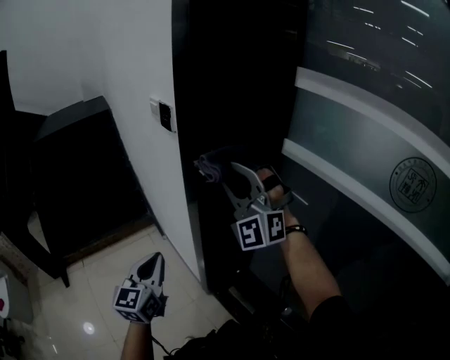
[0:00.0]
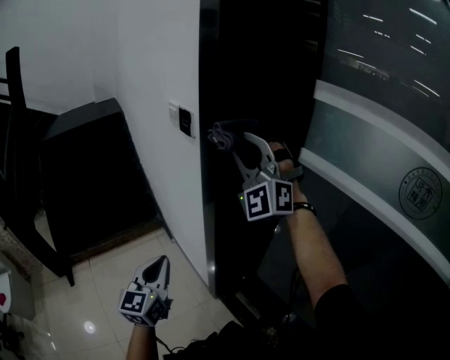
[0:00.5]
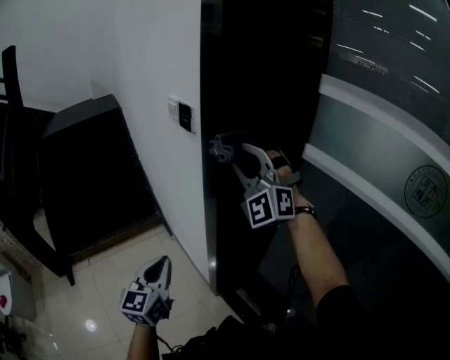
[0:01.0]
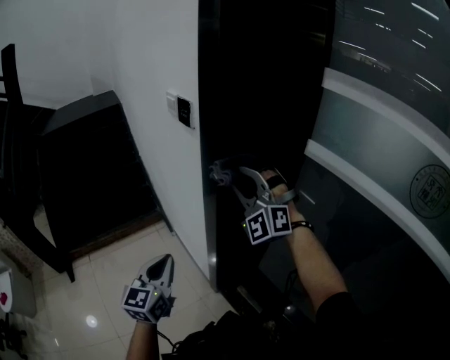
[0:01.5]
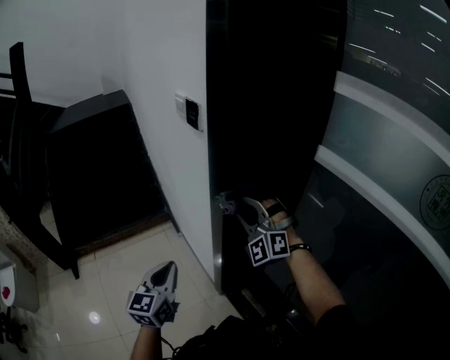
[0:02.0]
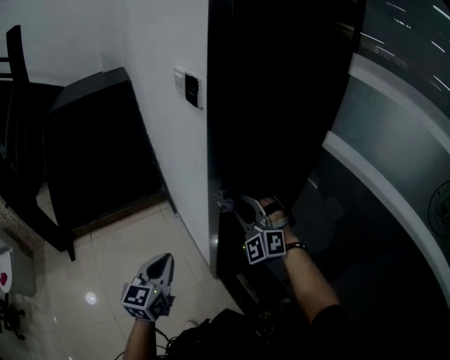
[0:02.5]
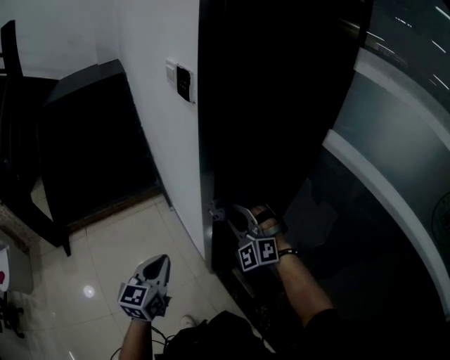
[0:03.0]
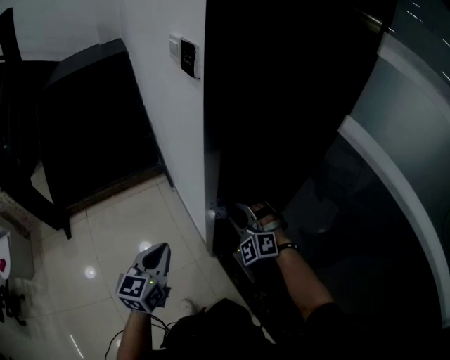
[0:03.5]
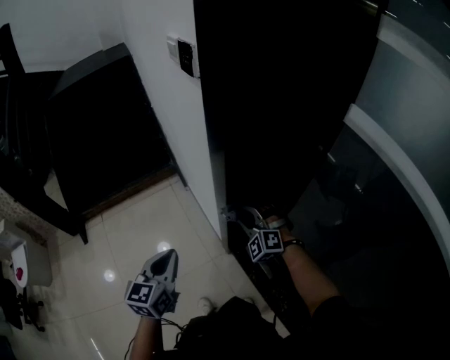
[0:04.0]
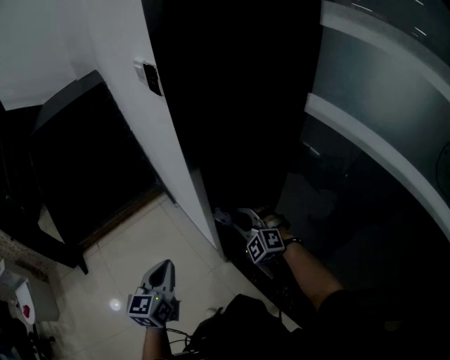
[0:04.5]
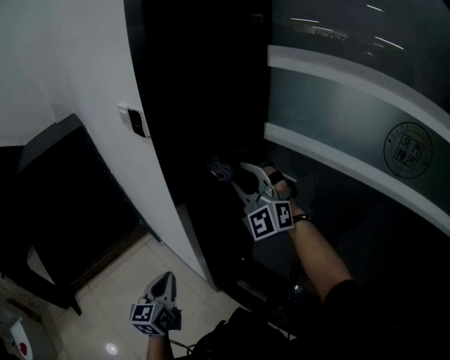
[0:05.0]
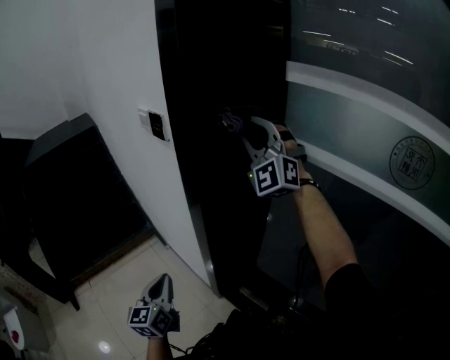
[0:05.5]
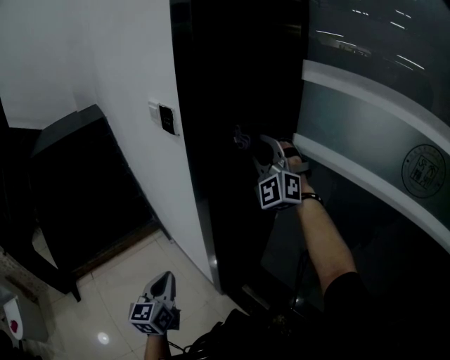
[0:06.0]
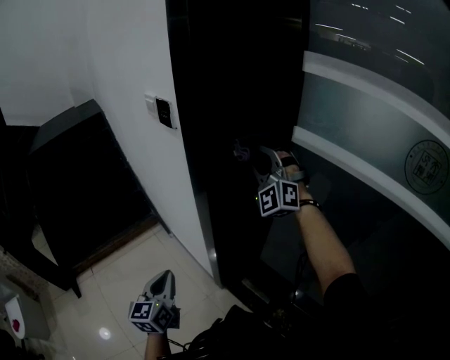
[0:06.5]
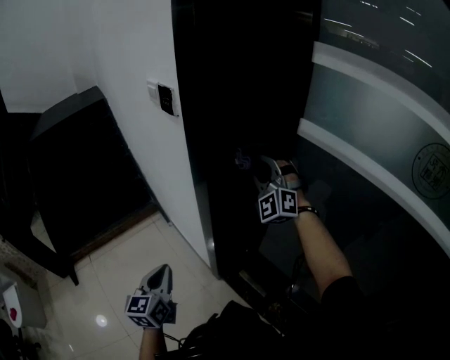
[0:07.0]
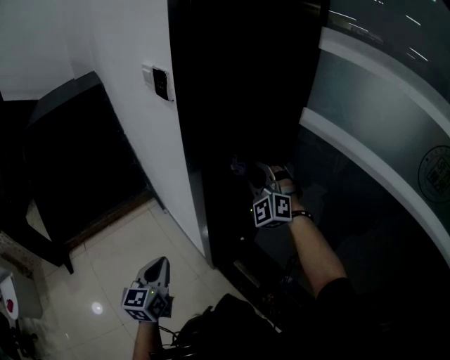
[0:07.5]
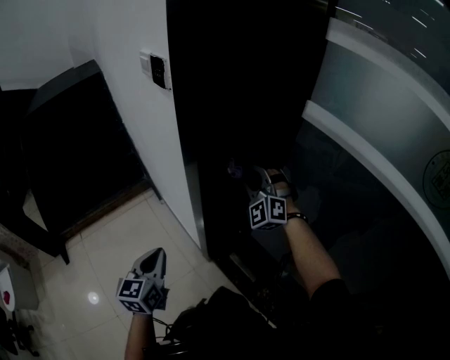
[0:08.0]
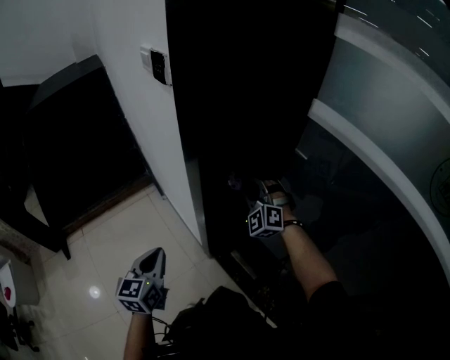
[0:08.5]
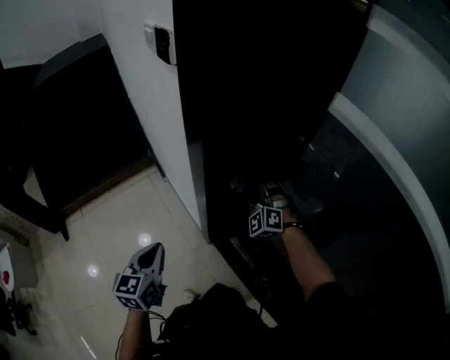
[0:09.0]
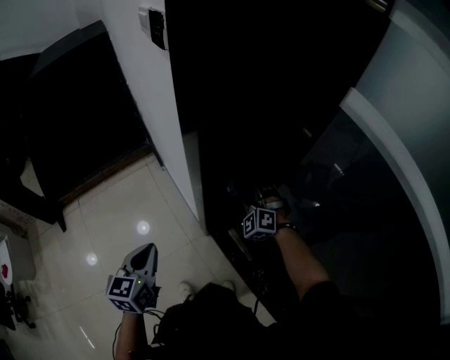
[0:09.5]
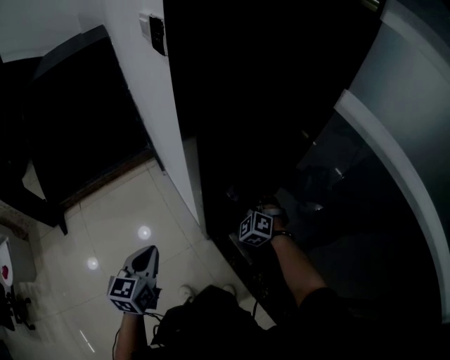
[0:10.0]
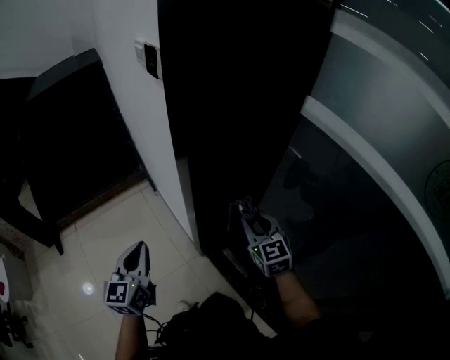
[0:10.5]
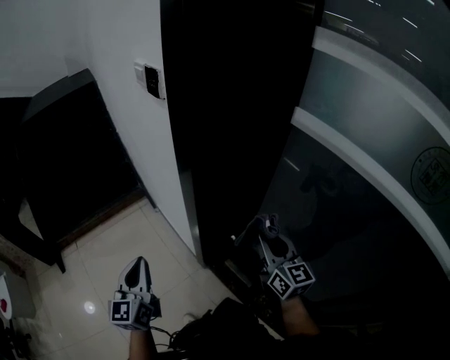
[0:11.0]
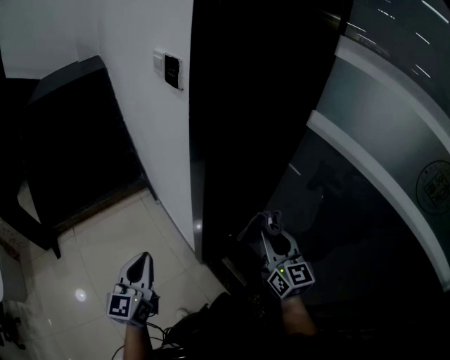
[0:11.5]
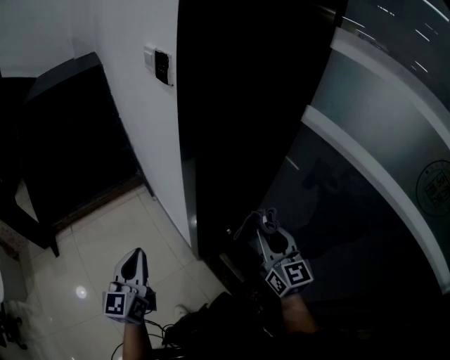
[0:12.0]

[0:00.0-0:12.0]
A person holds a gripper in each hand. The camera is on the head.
0:00.0 to 0:02.0: The right gripper shifts about 15 cm downward; the left gripper moves about 5 cm.
0:02.0 to 0:04.0: The right gripper travels downward by some 25 cm, and turns by some 30 degrees. Meanwhile the left gripper travels downward by approximately 5 cm.
0:04.0 to 0:06.0: The right gripper is displaced upward by some 40 cm, and angles its fingers upward, by some 40 degrees.
0:06.0 to 0:08.0: The right gripper shifts some 25 cm downward, and changes its angle by approximately 20 degrees.
0:08.0 to 0:10.0: The right gripper travels downward by about 20 cm, and swivels about 30 degrees.
0:10.0 to 0:12.0: The left gripper moves upward, approximately 10 cm, and changes its angle by about 20 degrees. Meanwhile the right gripper travels upward and backward by approximately 25 cm, and twists roughly 60 degrees clockwise, seen from behind.

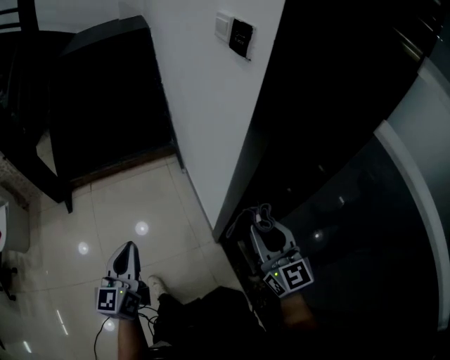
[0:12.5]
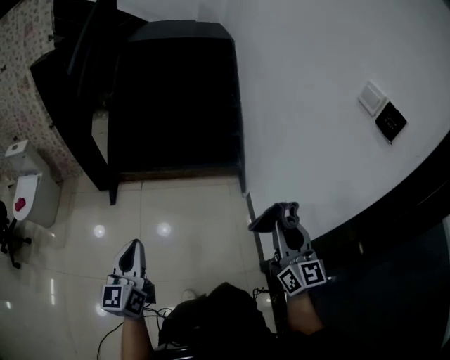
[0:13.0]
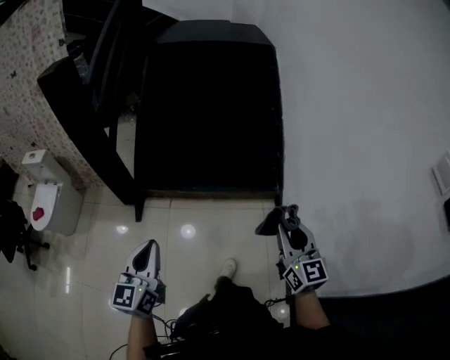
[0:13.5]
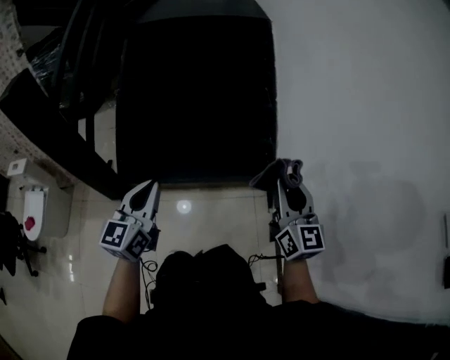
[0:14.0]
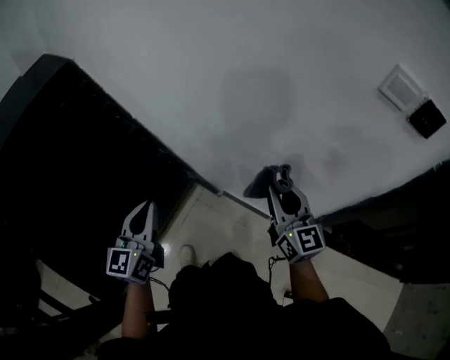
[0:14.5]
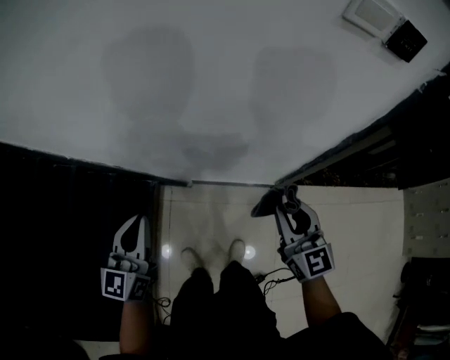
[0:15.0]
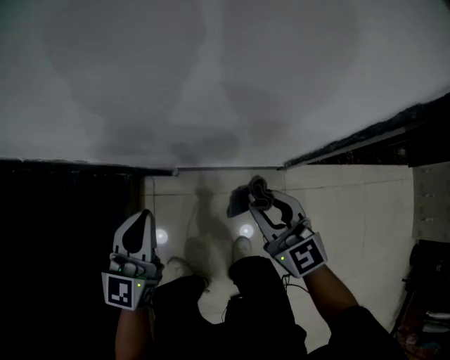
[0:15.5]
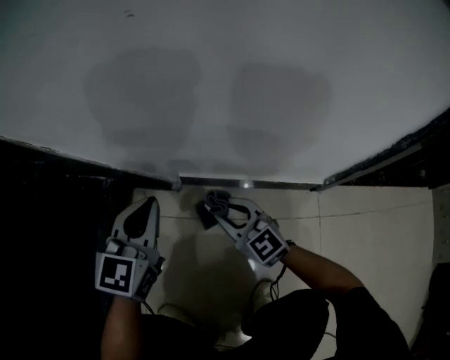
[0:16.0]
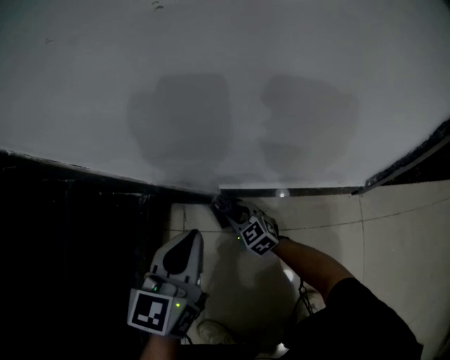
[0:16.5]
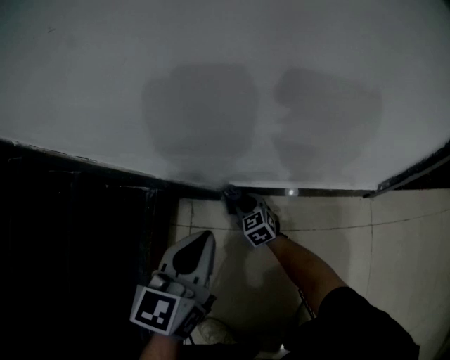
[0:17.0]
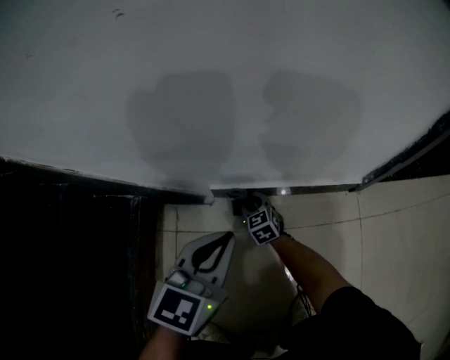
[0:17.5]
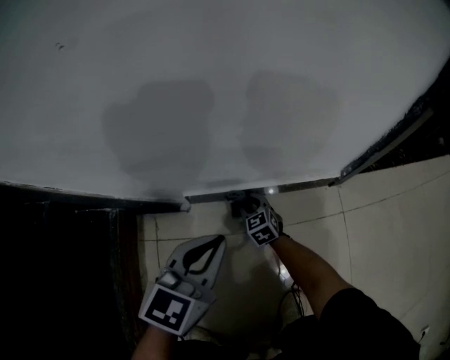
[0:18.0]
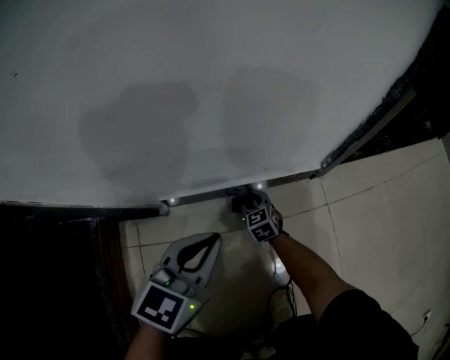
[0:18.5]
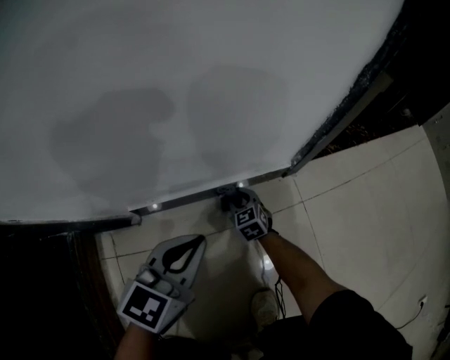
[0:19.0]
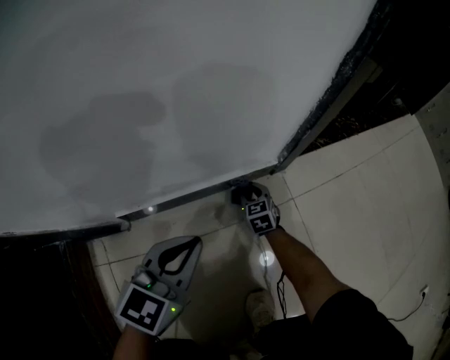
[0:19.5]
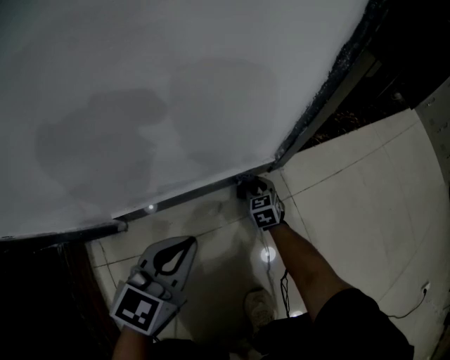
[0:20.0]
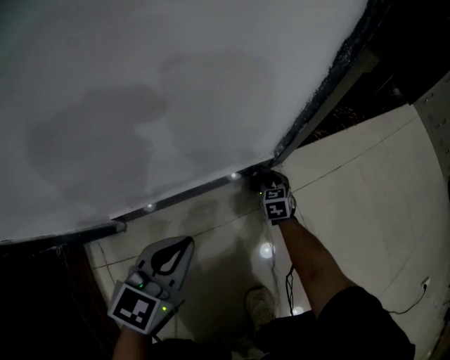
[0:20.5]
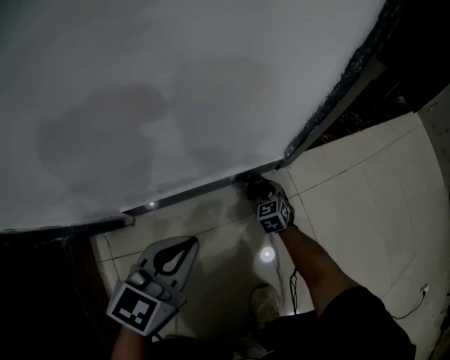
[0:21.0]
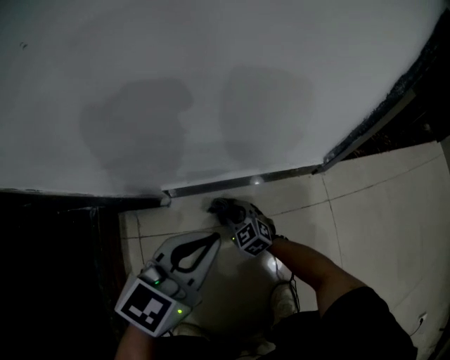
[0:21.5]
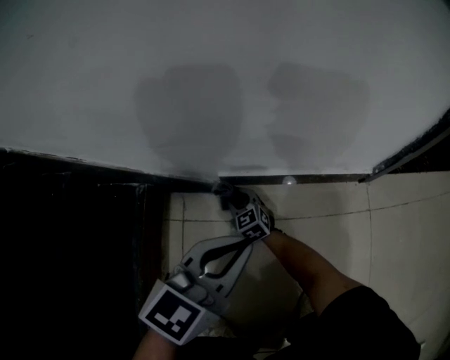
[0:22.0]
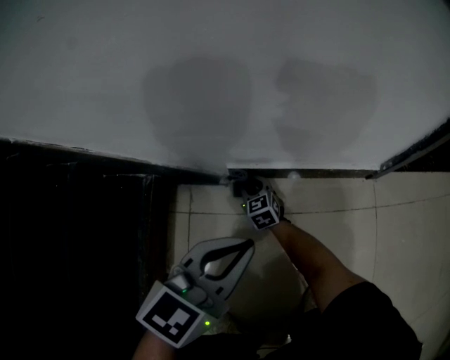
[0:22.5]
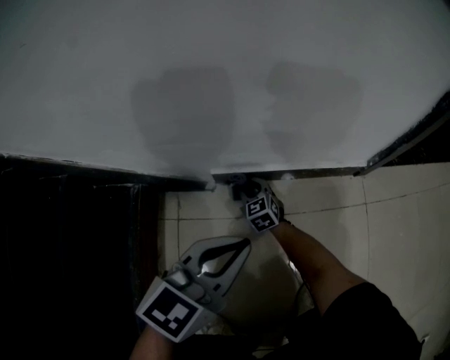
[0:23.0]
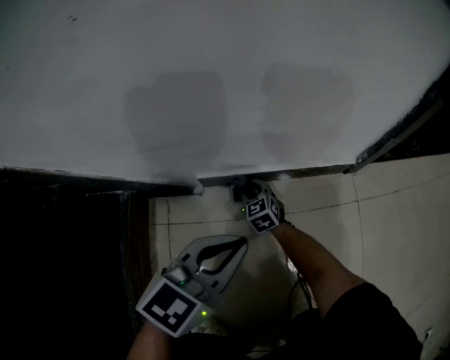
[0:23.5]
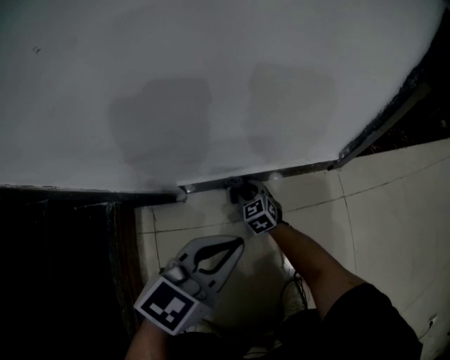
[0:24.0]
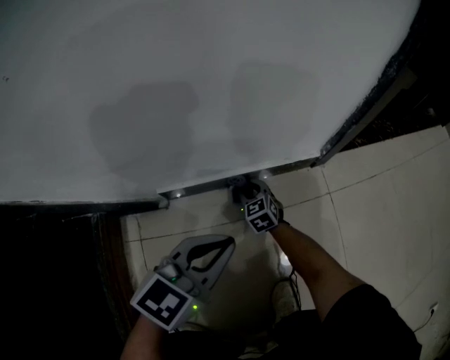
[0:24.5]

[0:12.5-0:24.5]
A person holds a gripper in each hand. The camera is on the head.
0:12.5 to 0:14.5: Both grippers are carried about 70 cm. The right gripper swivels approximately 40 degrees. Meanwhile the left gripper rotates about 40 degrees.
0:14.5 to 0:16.5: The two grippers go roughly 70 cm downward. The left gripper swivels about 40 degrees. The right gripper rotates about 30 degrees.
0:16.5 to 0:18.5: The right gripper ends up roughly 25 cm from where it was, and swivels about 30 degrees. Meanwhile the left gripper moves approximately 20 cm, and turns by approximately 30 degrees.
0:18.5 to 0:20.5: The left gripper shifts approximately 5 cm to the right. Meanwhile the right gripper moves to the right and forward, approximately 25 cm, and swivels approximately 30 degrees.
0:20.5 to 0:22.5: The right gripper shifts by approximately 50 cm, and swivels some 40 degrees. Meanwhile the left gripper changes place by about 20 cm.
0:22.5 to 0:24.5: The left gripper heads to the right, covering approximately 15 cm, while the right gripper shifts about 25 cm to the right.

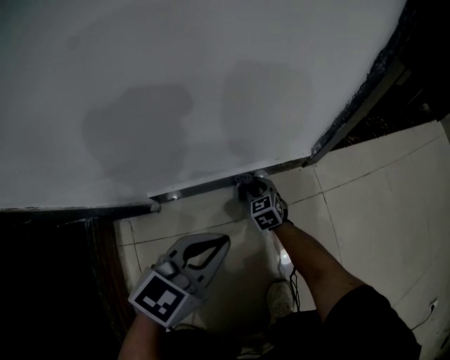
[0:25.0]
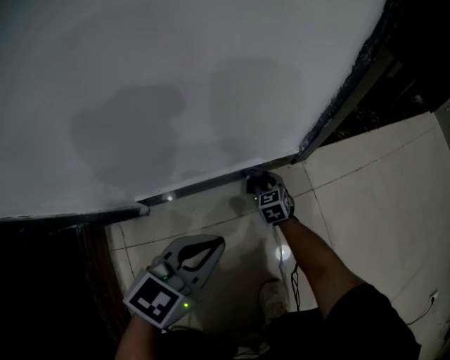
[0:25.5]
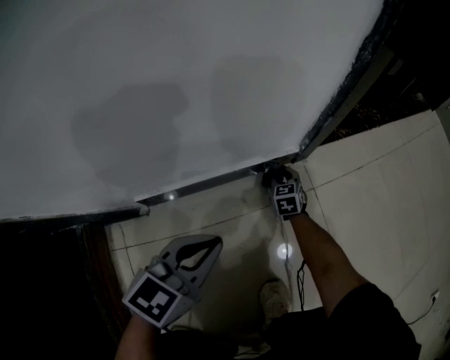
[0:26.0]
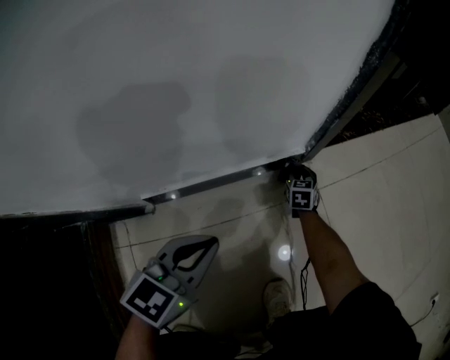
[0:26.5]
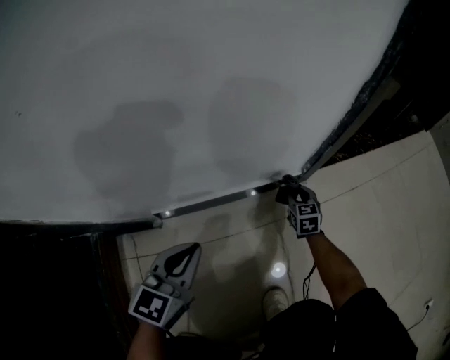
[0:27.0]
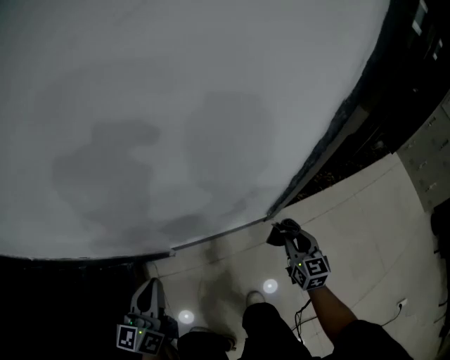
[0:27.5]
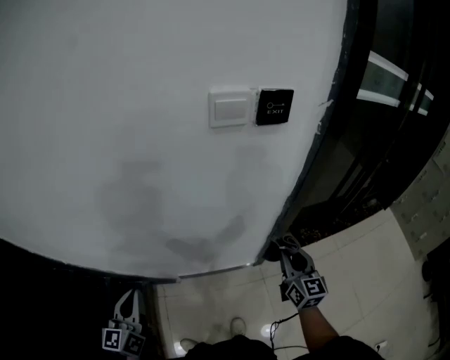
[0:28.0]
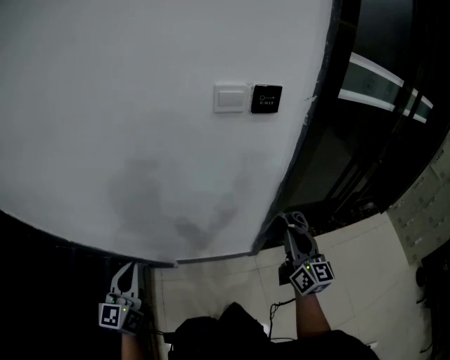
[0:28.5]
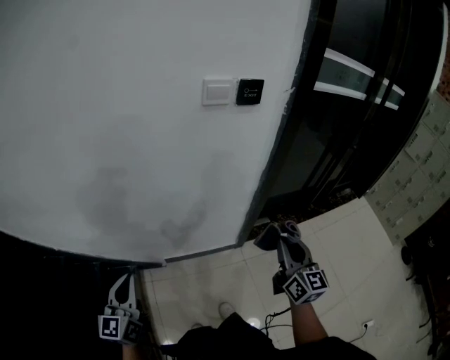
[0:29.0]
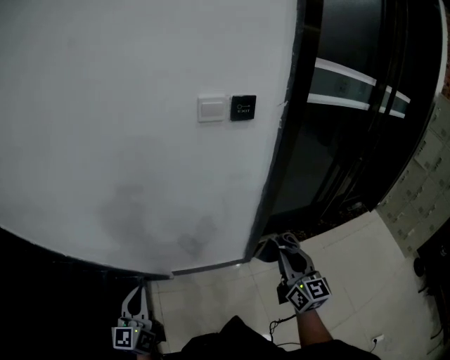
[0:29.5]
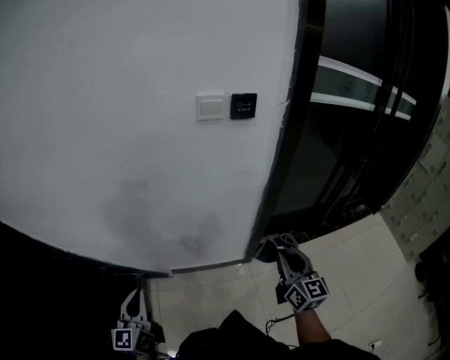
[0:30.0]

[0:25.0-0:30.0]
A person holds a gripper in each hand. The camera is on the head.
0:25.0 to 0:27.5: The left gripper is displaced upward by about 35 cm, and rotates about 40 degrees; the right gripper is displaced upward by about 50 cm, and changes its angle by about 30 degrees.
0:27.5 to 0:30.0: The right gripper heads upward, covering about 35 cm, and changes its angle by some 20 degrees, while the left gripper shifts roughly 25 cm upward and backward, and turns by some 20 degrees.
